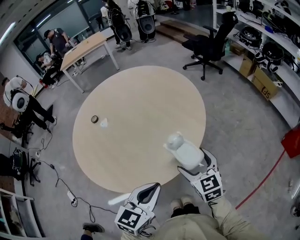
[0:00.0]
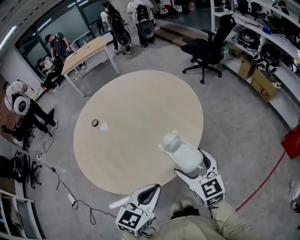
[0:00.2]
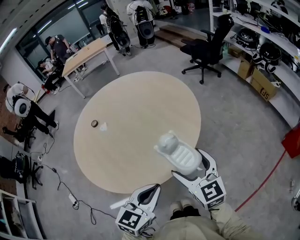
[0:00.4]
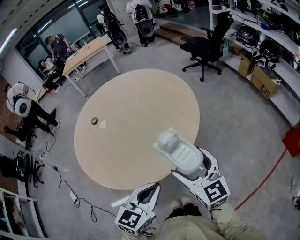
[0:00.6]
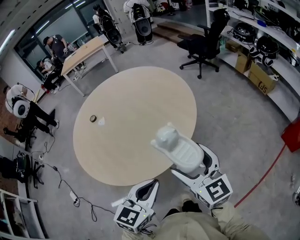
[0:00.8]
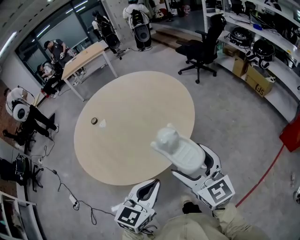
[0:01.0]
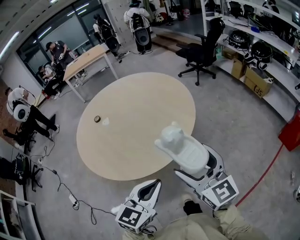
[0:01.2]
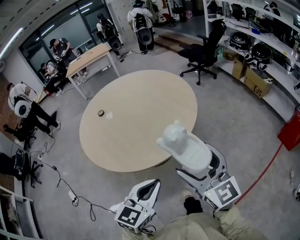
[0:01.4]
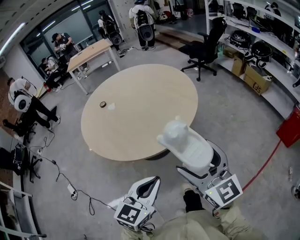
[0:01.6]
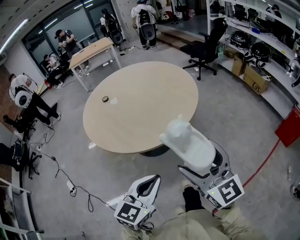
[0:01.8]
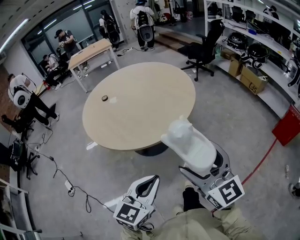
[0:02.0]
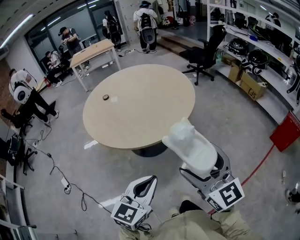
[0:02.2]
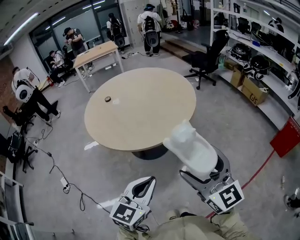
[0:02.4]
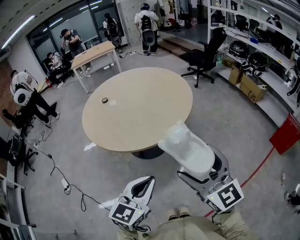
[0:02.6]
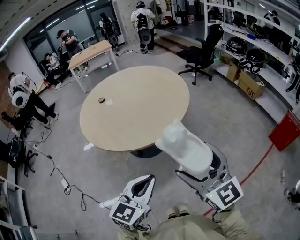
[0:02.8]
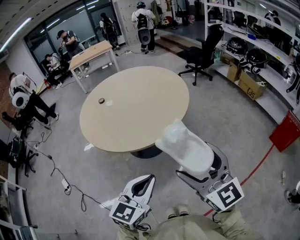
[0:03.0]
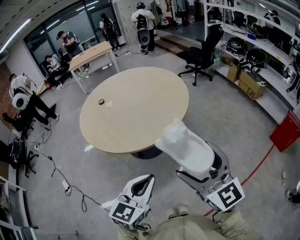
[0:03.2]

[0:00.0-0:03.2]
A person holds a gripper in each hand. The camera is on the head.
0:00.0 to 0:01.6: The right gripper shifts approximately 30 cm backward and upward, and swivels some 30 degrees, while the left gripper shifts about 20 cm backward.
0:01.6 to 0:03.2: Both grippers travel together backward, some 5 cm.

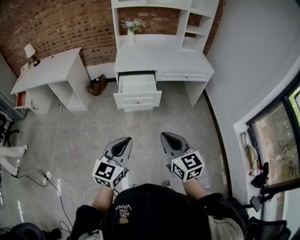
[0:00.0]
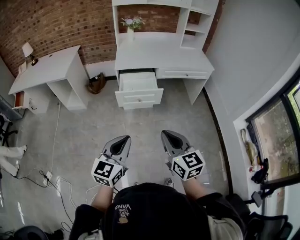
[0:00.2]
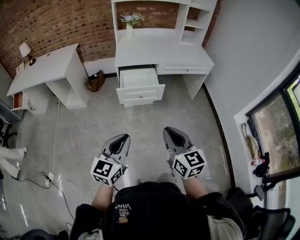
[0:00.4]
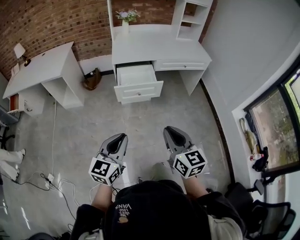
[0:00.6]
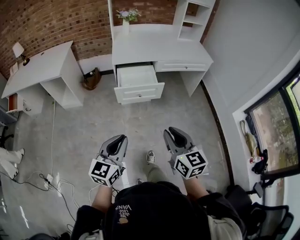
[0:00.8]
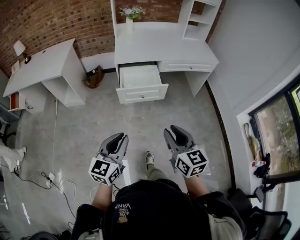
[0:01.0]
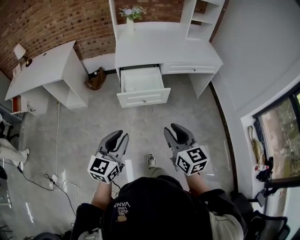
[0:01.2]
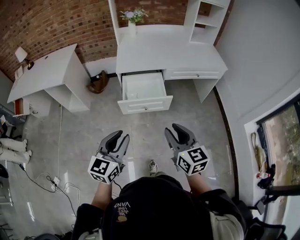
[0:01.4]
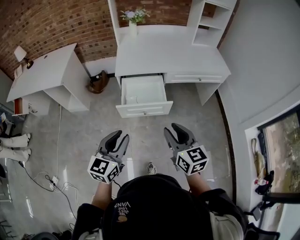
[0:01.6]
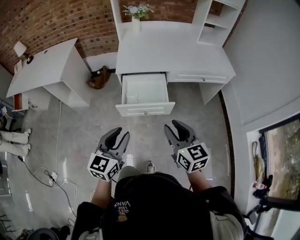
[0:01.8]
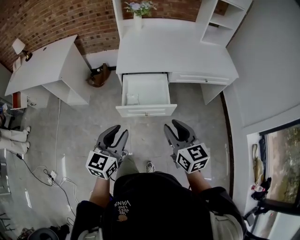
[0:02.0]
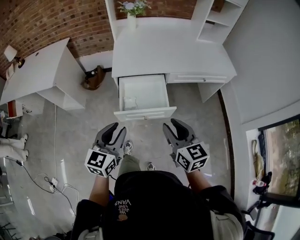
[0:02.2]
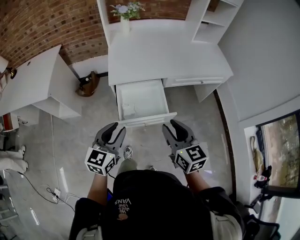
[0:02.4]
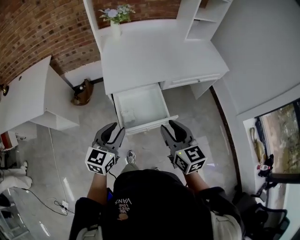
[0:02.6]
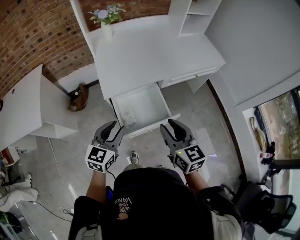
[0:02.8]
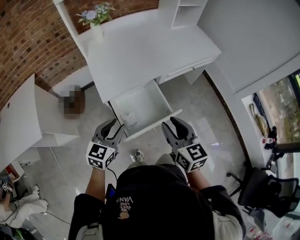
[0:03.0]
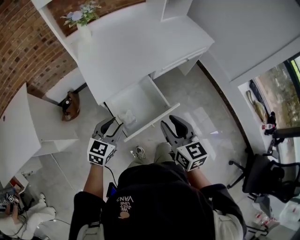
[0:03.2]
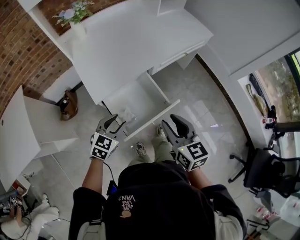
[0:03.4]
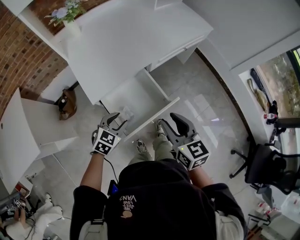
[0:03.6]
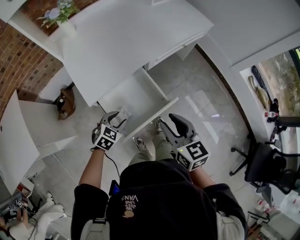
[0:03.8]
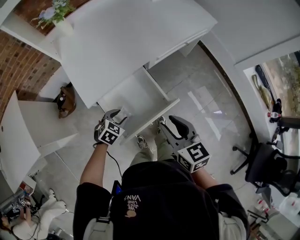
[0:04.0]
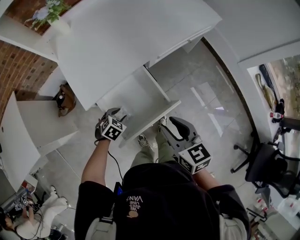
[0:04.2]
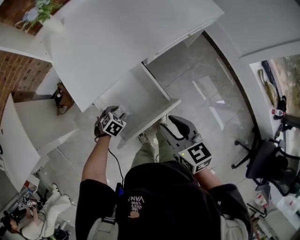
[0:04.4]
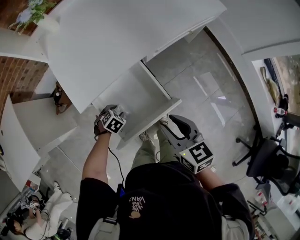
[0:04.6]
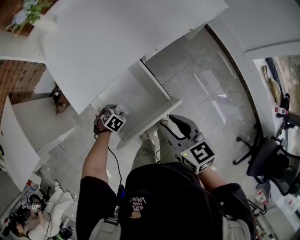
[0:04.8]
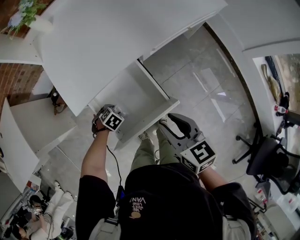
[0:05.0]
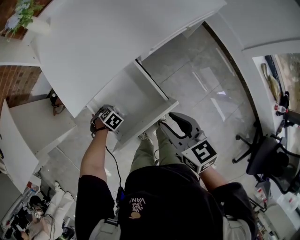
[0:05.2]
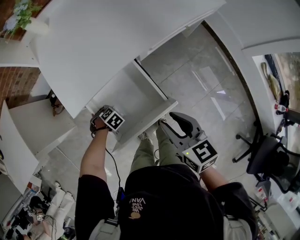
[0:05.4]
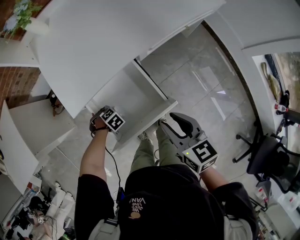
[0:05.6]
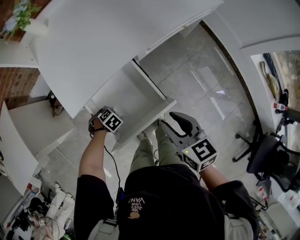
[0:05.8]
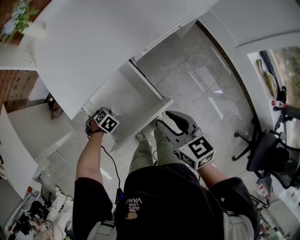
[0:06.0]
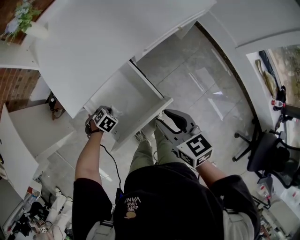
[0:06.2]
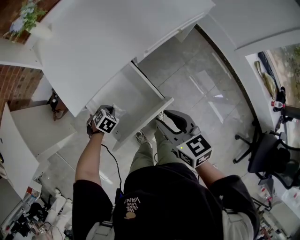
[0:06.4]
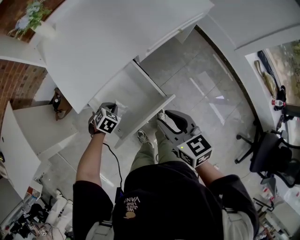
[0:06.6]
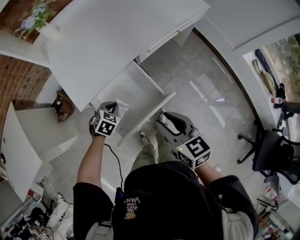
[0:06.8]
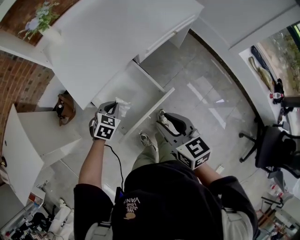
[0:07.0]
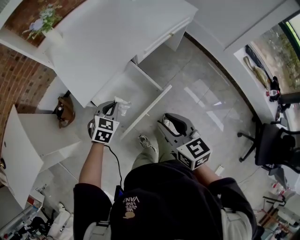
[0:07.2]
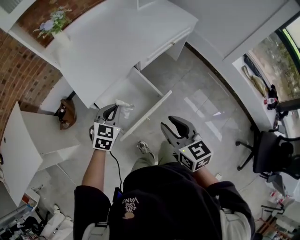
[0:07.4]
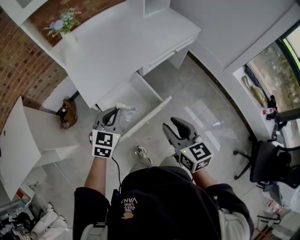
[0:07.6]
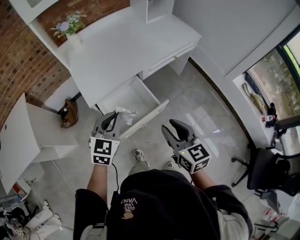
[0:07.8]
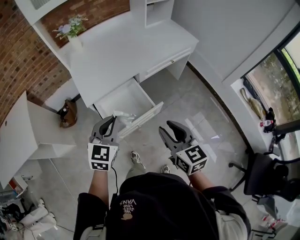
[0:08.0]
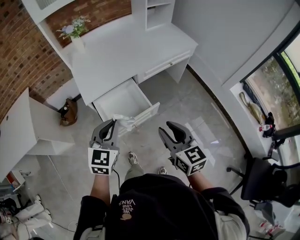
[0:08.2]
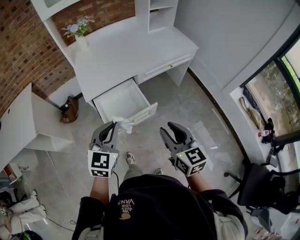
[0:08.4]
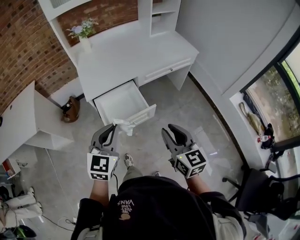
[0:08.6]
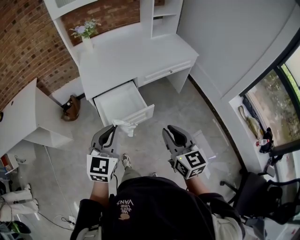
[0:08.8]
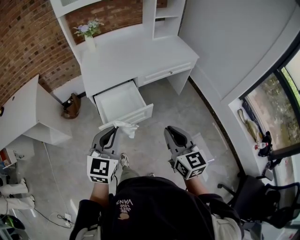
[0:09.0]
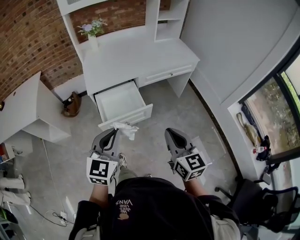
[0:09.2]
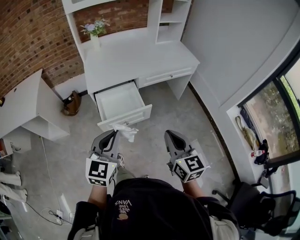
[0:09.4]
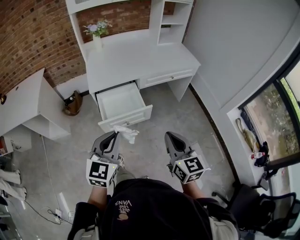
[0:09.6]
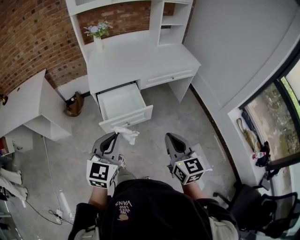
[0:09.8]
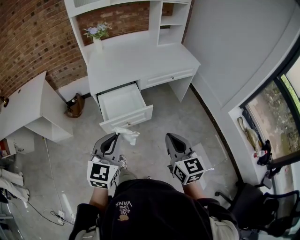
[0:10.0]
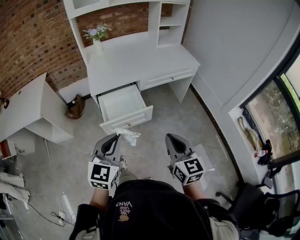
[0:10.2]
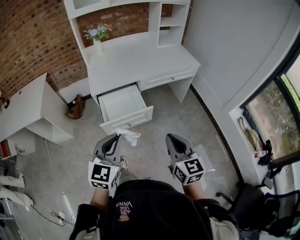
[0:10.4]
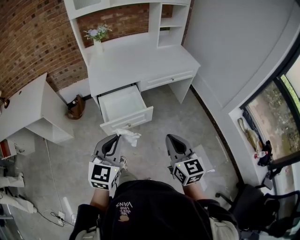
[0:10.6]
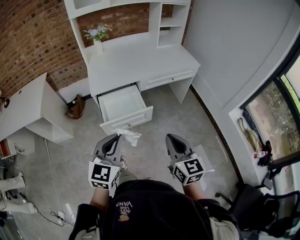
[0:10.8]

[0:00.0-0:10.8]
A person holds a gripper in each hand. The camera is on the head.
0:00.0 to 0:01.6: Both grippers move forward, approximately 25 cm. The right gripper opens. The left gripper opens its fingers.
0:01.6 to 0:03.0: The right gripper moves approximately 25 cm, and rotates about 20 degrees. Meanwhile the left gripper moves roughly 35 cm, and turns by some 30 degrees.
0:03.0 to 0:04.6: The right gripper is displaced downward by some 15 cm. Meanwhile the left gripper is displaced downward by roughly 35 cm, and tilts its fingers some 50 degrees downward.
0:04.6 to 0:06.2: The left gripper closes up.
0:06.2 to 0:07.8: The right gripper ends up approximately 20 cm from where it was; the left gripper travels upward by some 40 cm, and points its fingers about 60 degrees further upward.
0:07.8 to 0:09.2: Both grippers move backward, to the right and upward, roughly 20 cm. The right gripper closes its fingers.
0:09.2 to 0:10.8: The grippers stay close to where they were, moving slightly.

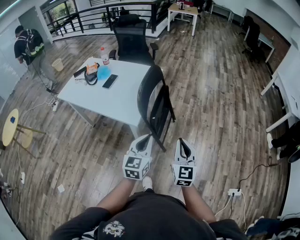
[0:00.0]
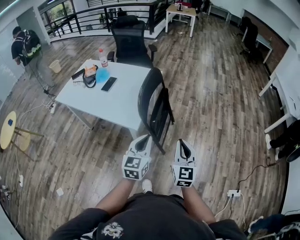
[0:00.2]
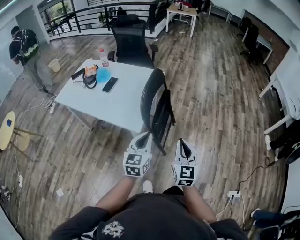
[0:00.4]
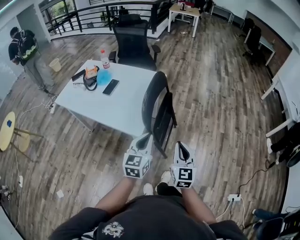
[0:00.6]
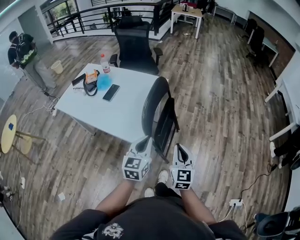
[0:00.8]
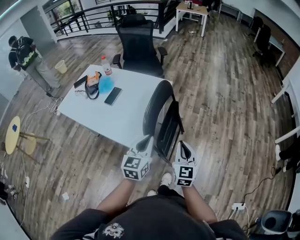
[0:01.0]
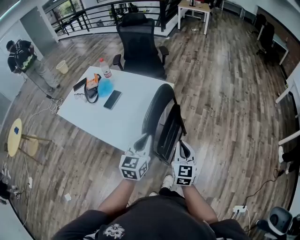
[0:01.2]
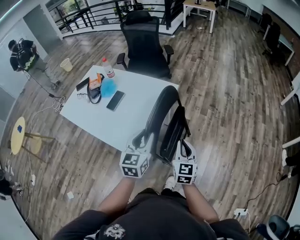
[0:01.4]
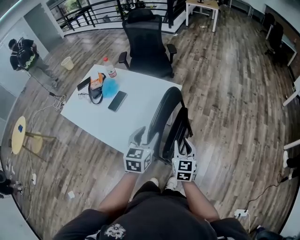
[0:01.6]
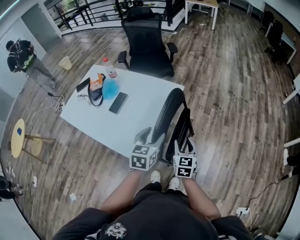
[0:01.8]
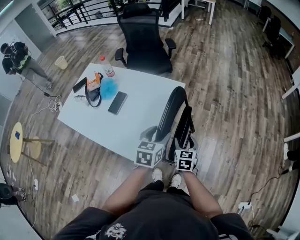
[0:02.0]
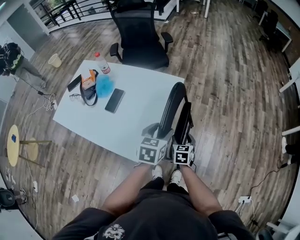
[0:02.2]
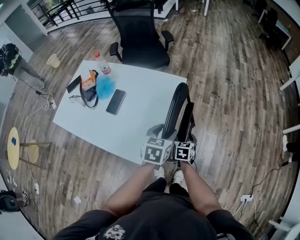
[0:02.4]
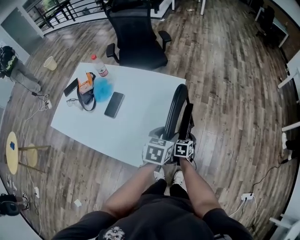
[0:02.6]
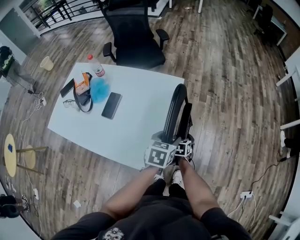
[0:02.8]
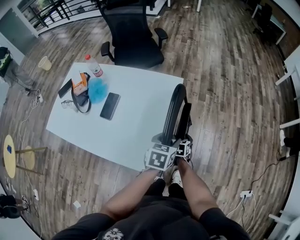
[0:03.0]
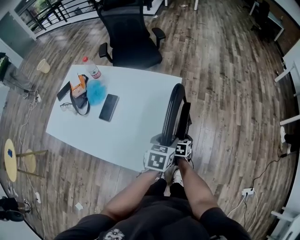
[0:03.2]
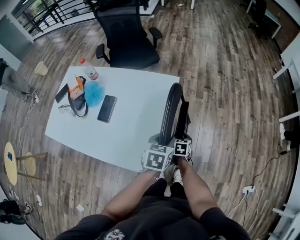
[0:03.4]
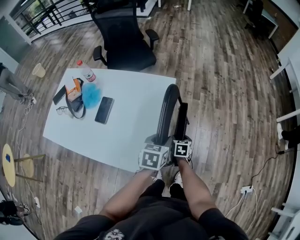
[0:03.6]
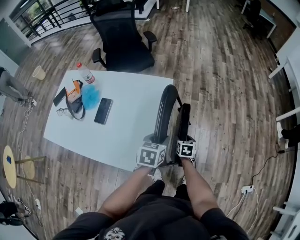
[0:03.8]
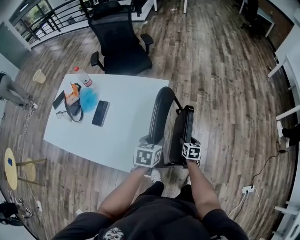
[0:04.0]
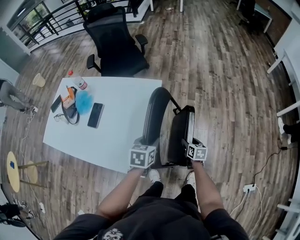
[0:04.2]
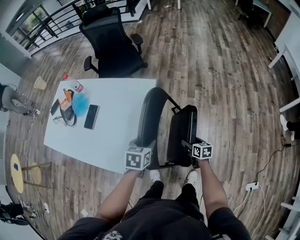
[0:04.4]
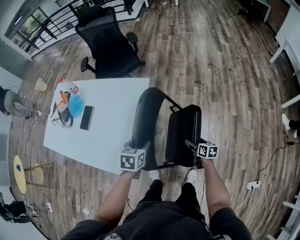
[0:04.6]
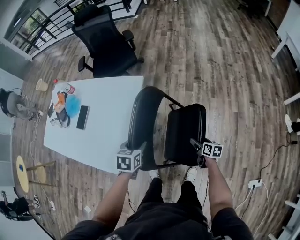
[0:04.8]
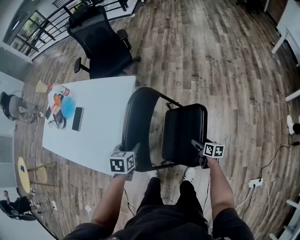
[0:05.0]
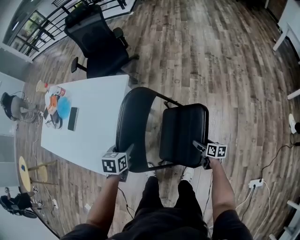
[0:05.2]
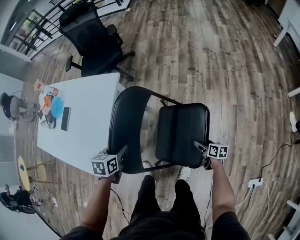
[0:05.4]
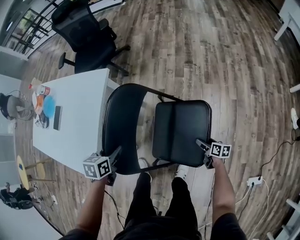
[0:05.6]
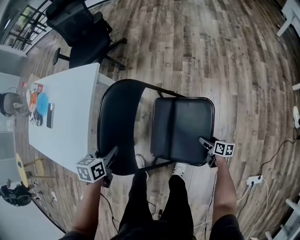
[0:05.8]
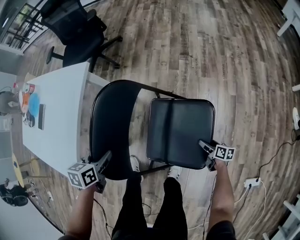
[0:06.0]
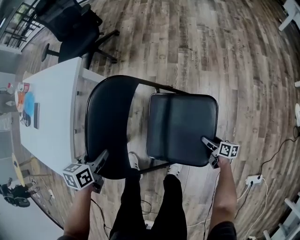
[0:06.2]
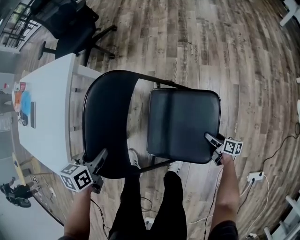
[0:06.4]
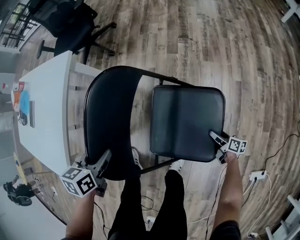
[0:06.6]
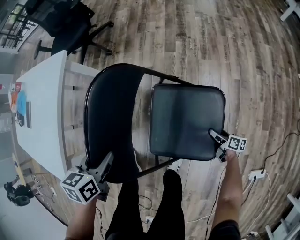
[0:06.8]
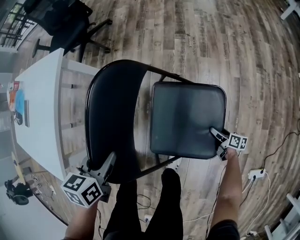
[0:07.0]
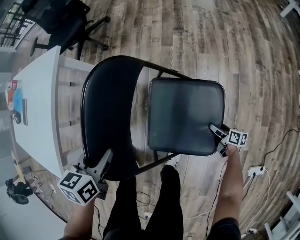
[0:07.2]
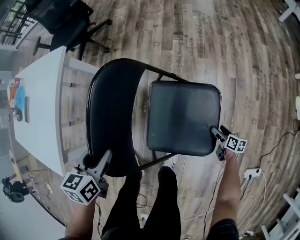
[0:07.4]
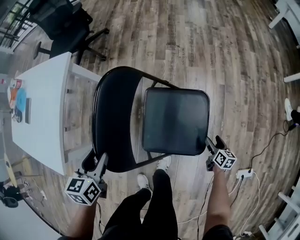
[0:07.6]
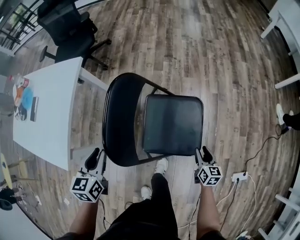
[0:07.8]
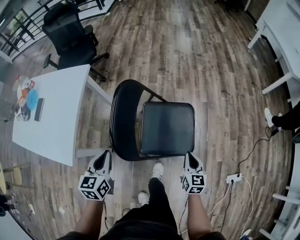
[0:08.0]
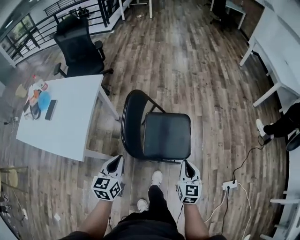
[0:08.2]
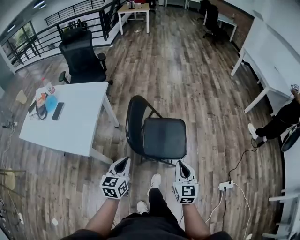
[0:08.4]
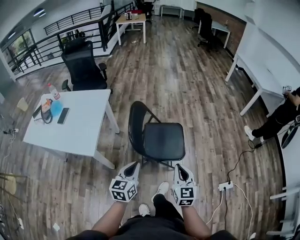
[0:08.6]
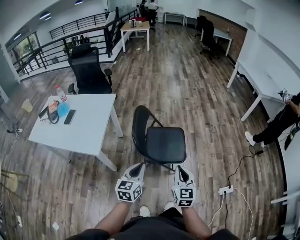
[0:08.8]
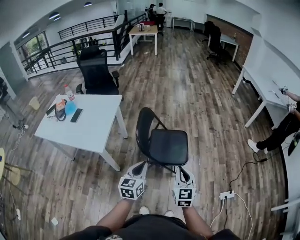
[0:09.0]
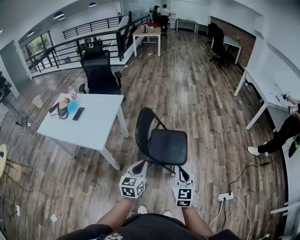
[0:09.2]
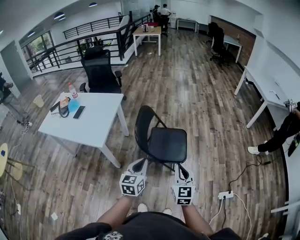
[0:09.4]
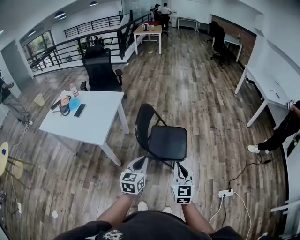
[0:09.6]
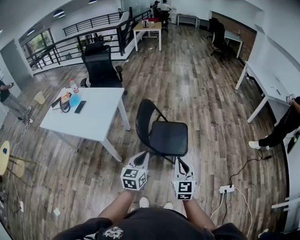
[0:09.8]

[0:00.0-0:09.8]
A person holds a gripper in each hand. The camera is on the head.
0:00.0 to 0:01.4: Both grippers move forward, roughly 30 cm. The left gripper opens.
0:01.4 to 0:02.8: The left gripper goes approximately 15 cm downward and forward, rotates approximately 40 degrees, and opens up; the right gripper heads downward and forward, covering about 30 cm, tilts its fingers roughly 40 degrees downward, and opens.
0:02.8 to 0:04.2: The right gripper travels to the right by approximately 15 cm, and rotates some 20 degrees, while the left gripper closes.
0:04.2 to 0:05.6: The right gripper goes some 40 cm to the right and downward, and turns by approximately 30 degrees, while the left gripper goes roughly 20 cm downward and to the right.
0:05.6 to 0:07.0: The right gripper travels downward and to the right by approximately 25 cm; the left gripper shifts some 15 cm to the right and downward.
0:07.0 to 0:08.4: The right gripper travels upward and backward by roughly 70 cm, rotates approximately 70 degrees, and closes. The left gripper is displaced backward and upward by approximately 35 cm, tips its fingers upward by some 30 degrees, and closes up.
0:08.4 to 0:09.8: The right gripper travels backward and upward by some 20 cm. The left gripper travels backward, upward and to the right by approximately 20 cm.
